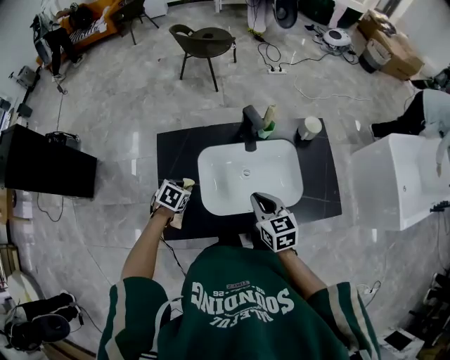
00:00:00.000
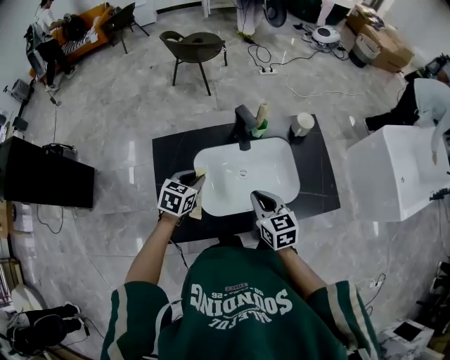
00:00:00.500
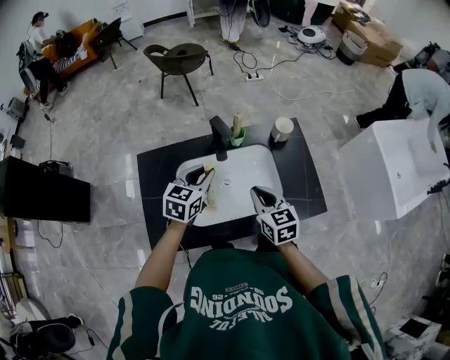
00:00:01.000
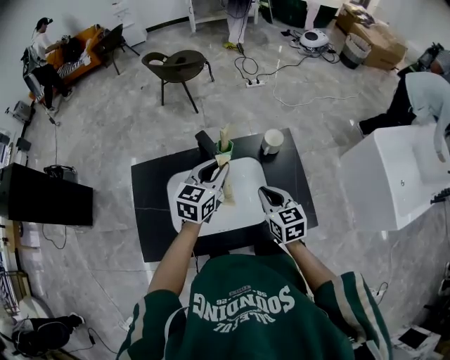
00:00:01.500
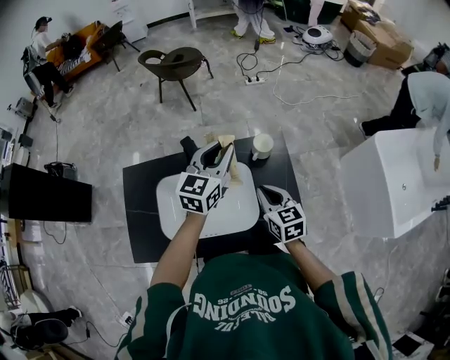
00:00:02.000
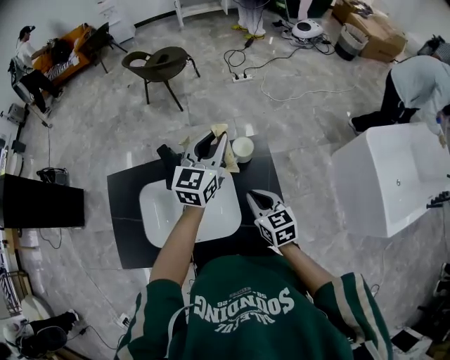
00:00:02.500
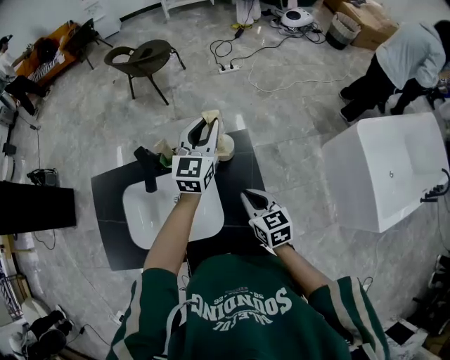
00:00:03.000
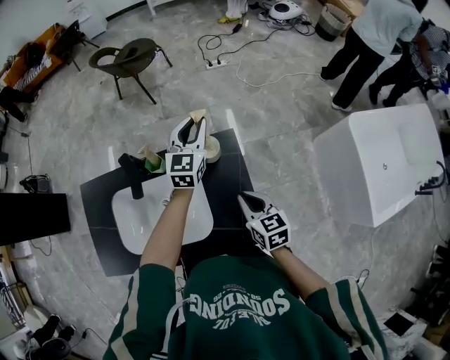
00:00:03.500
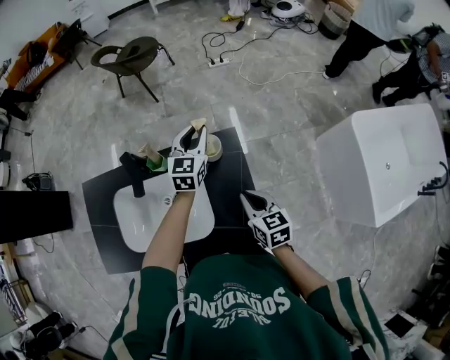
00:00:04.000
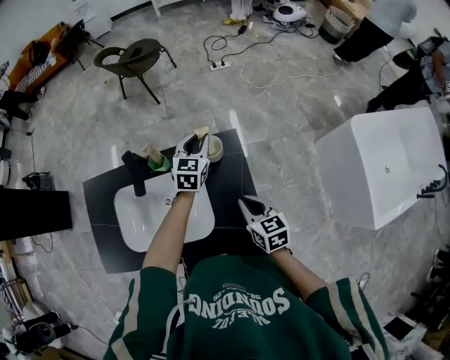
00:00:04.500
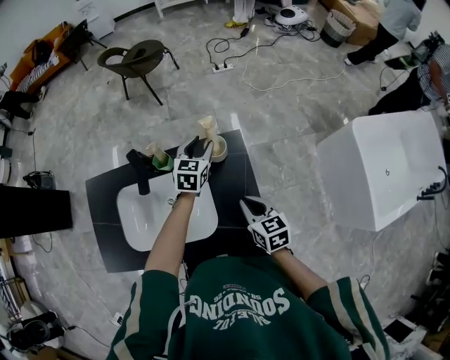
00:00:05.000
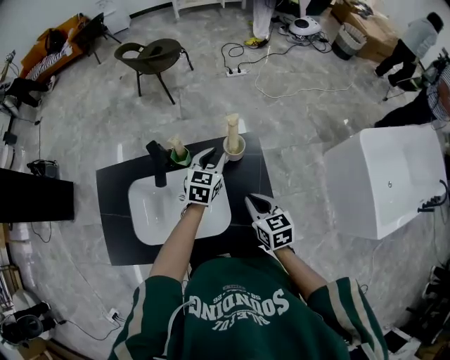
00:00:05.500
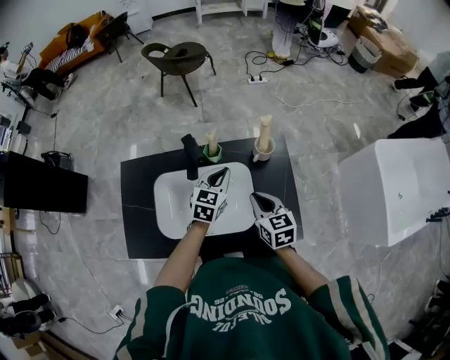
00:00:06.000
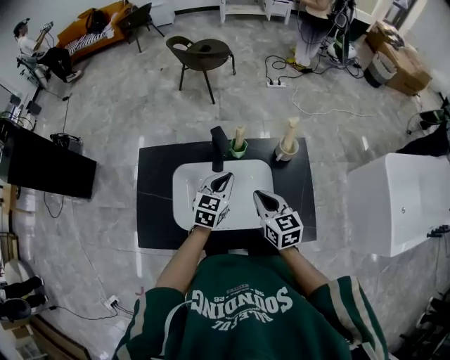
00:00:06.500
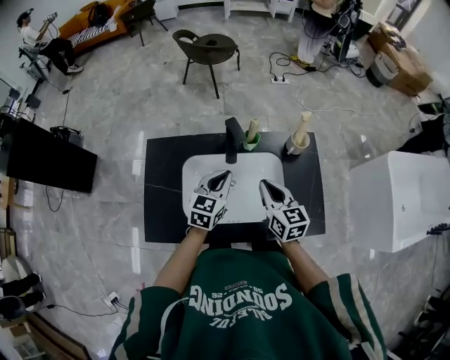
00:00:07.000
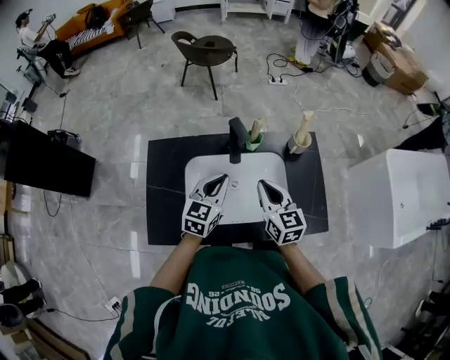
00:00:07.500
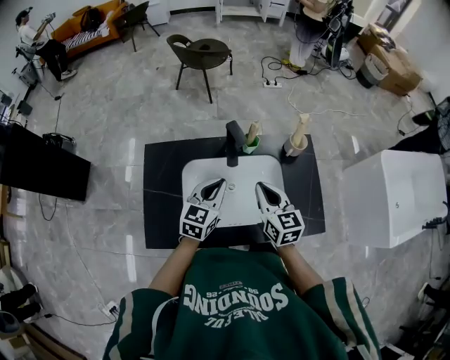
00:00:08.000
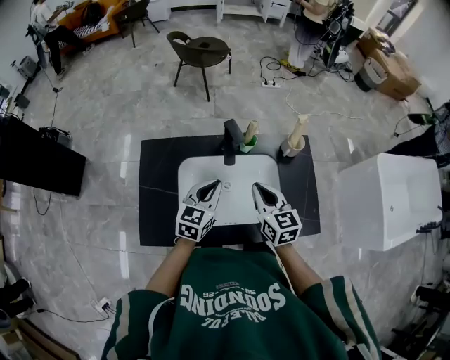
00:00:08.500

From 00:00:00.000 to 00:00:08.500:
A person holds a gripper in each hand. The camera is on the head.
From 00:00:00.000 to 00:00:02.000: The right gripper is displaced to the right and forward by about 25 cm. The left gripper shifts roughly 50 cm to the right, upward and forward, and tilts its fingers roughly 60 degrees upward.
From 00:00:02.000 to 00:00:04.000: The left gripper shifts approximately 20 cm to the right, forward and downward; the right gripper heads to the right, covering roughly 15 cm.
From 00:00:04.000 to 00:00:06.500: The right gripper is displaced to the left by roughly 25 cm. Meanwhile the left gripper heads to the left and backward, covering some 30 cm.
From 00:00:06.500 to 00:00:08.500: The left gripper shifts about 10 cm to the left and backward, while the right gripper is displaced to the left by approximately 5 cm.

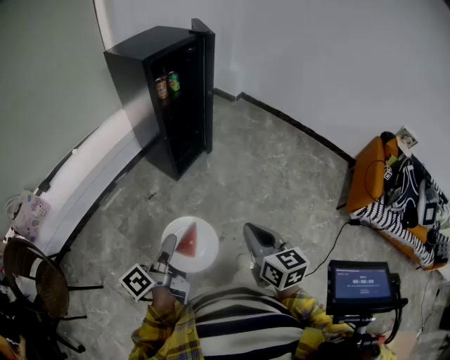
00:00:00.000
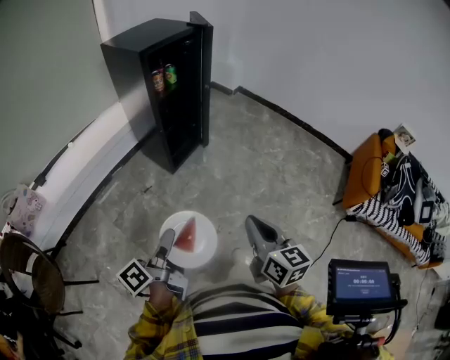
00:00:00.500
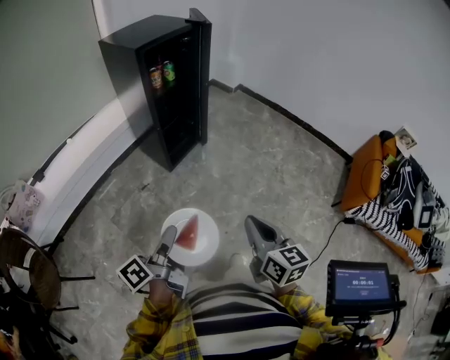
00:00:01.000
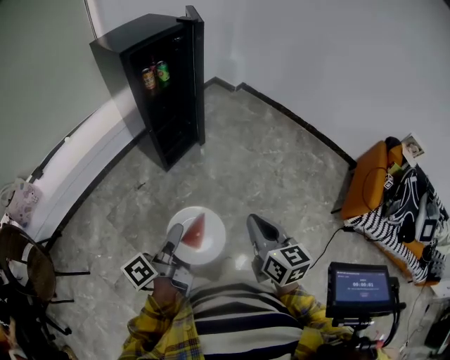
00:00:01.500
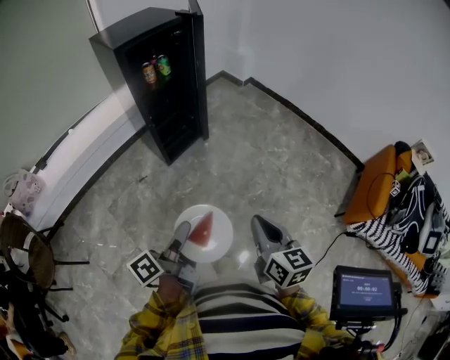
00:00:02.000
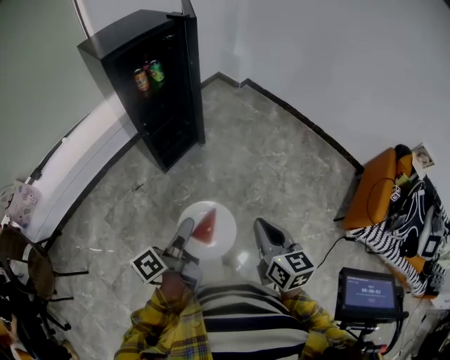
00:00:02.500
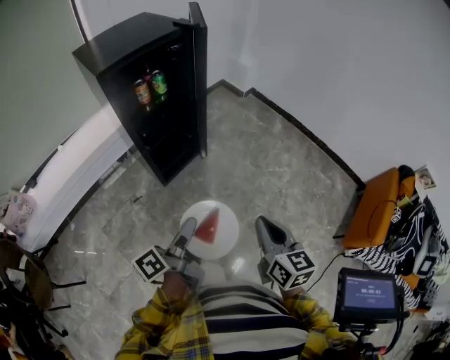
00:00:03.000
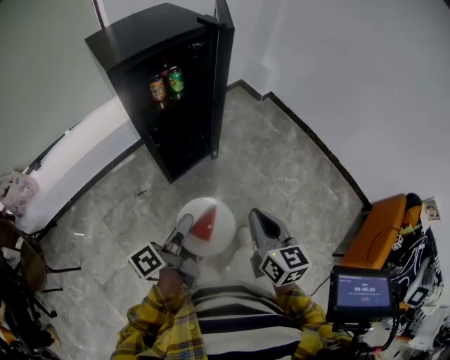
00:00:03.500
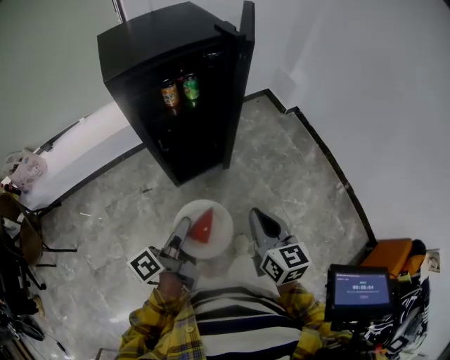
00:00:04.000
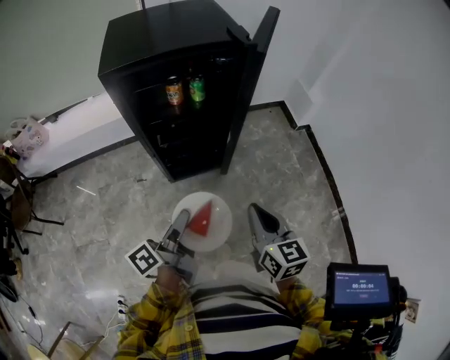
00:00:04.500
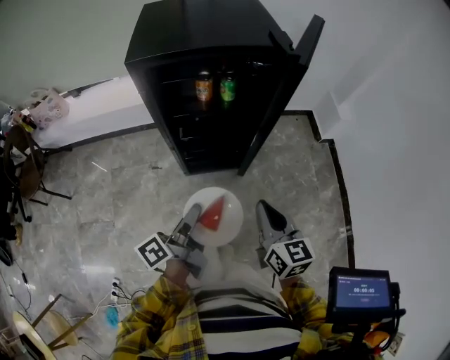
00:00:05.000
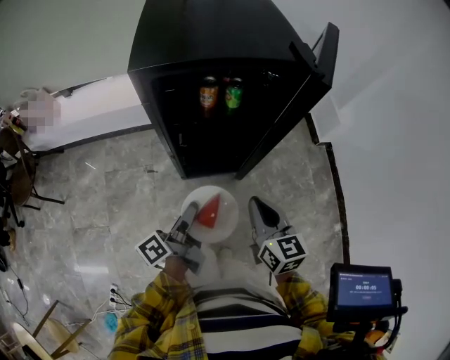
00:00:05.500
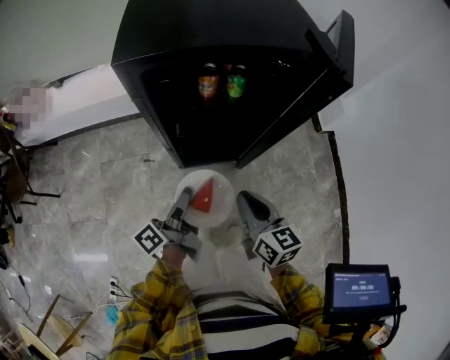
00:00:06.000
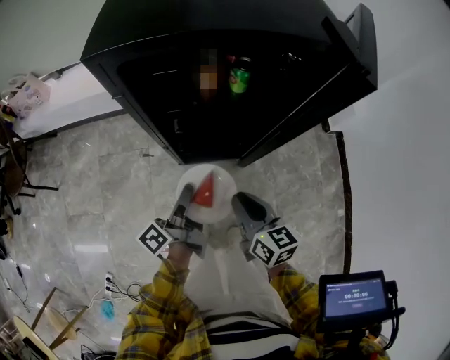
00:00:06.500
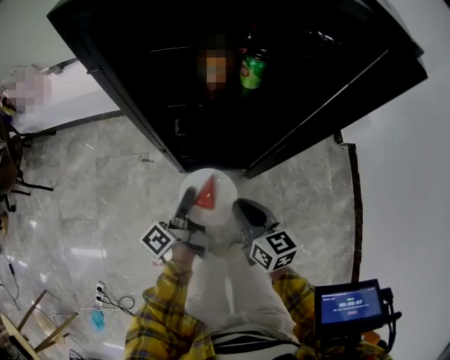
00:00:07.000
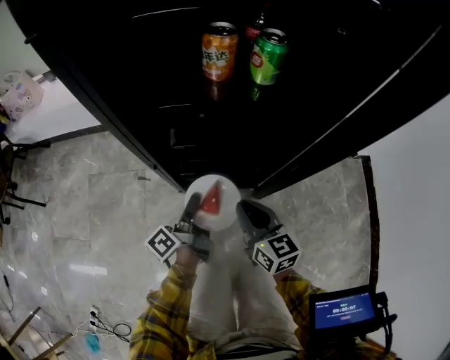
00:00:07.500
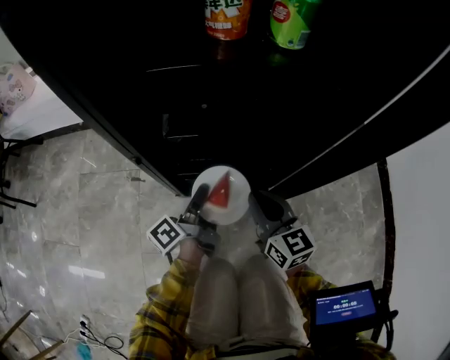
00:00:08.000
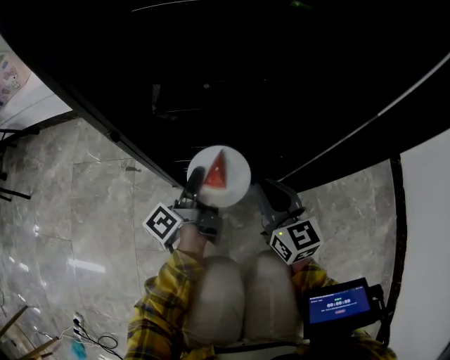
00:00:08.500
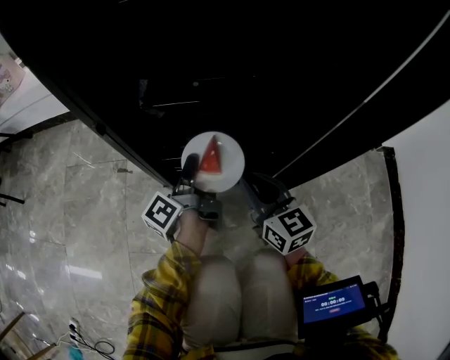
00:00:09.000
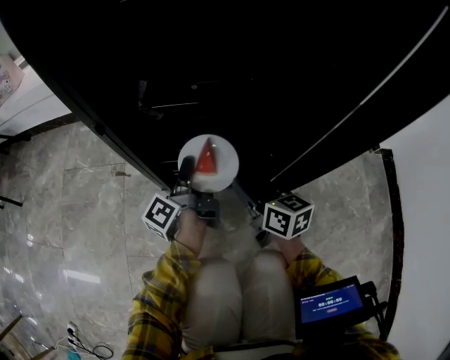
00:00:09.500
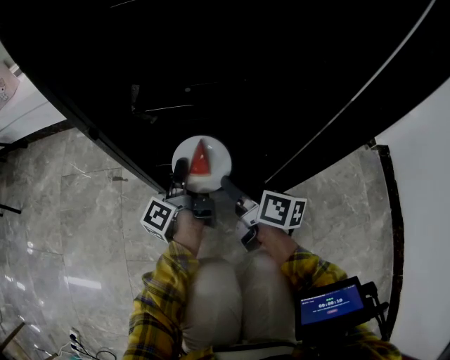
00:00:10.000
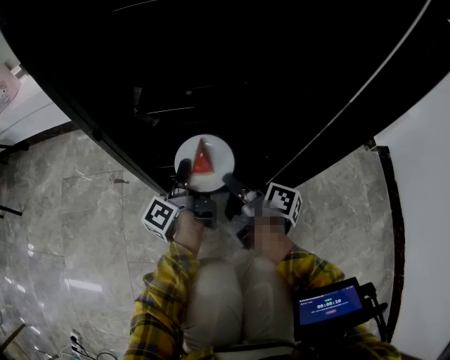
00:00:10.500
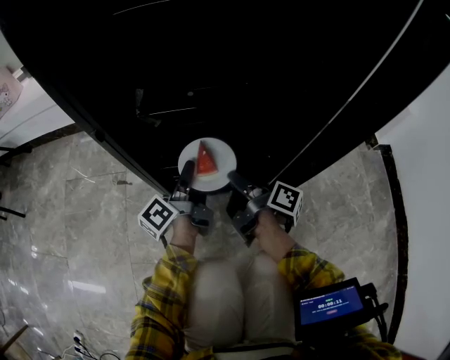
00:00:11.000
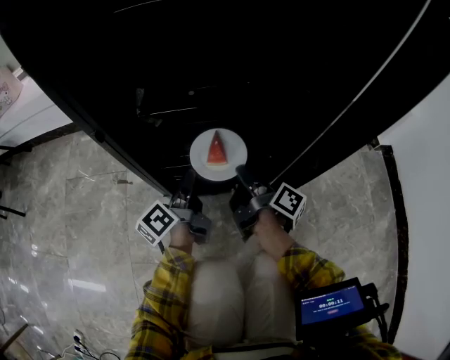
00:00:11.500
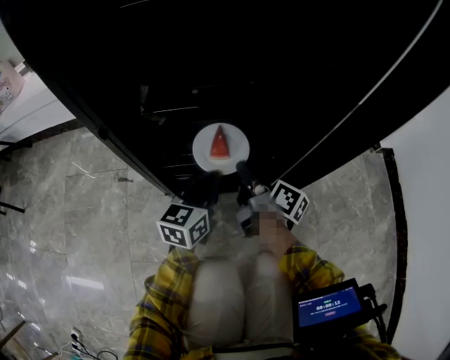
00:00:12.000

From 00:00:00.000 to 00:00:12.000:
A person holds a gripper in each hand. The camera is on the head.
From 00:00:00.000 to 00:00:02.000: The left gripper travels to the right by some 20 cm. The right gripper goes some 20 cm to the right and forward.
From 00:00:02.000 to 00:00:04.000: The grippers both shift forward by some 35 cm.
From 00:00:04.000 to 00:00:06.000: The left gripper shifts some 20 cm forward and downward, and swivels about 20 degrees. The right gripper travels forward by about 20 cm, and changes its angle by approximately 20 degrees.
From 00:00:06.000 to 00:00:08.000: The left gripper shifts roughly 40 cm downward, while the right gripper travels downward and forward by approximately 40 cm.
From 00:00:08.000 to 00:00:10.000: The left gripper goes some 10 cm downward and forward. The right gripper shifts about 10 cm downward, rotates around the line of its fingers by about 40 degrees, clockwise from behind, and opens.
From 00:00:10.000 to 00:00:12.000: The right gripper ends up approximately 5 cm from where it was; the left gripper moves to the right and backward, approximately 10 cm, and rotates around the line of its fingers by roughly 70 degrees, clockwise from behind.

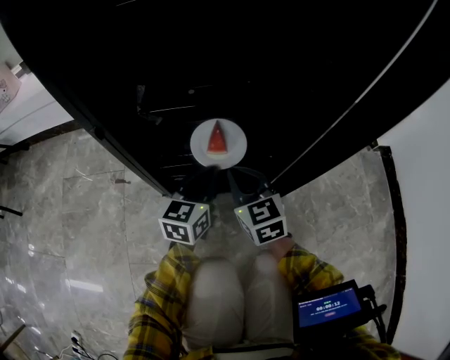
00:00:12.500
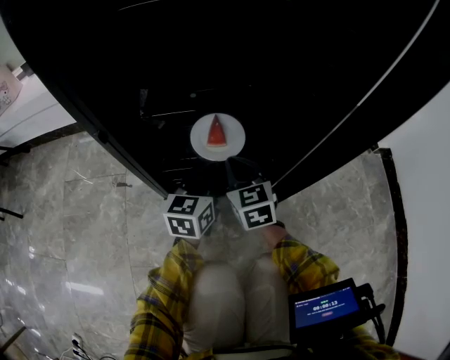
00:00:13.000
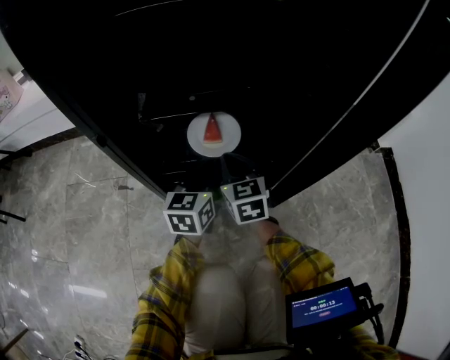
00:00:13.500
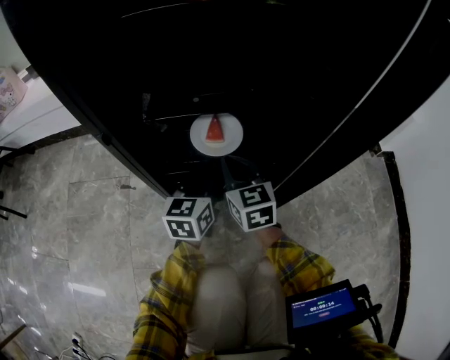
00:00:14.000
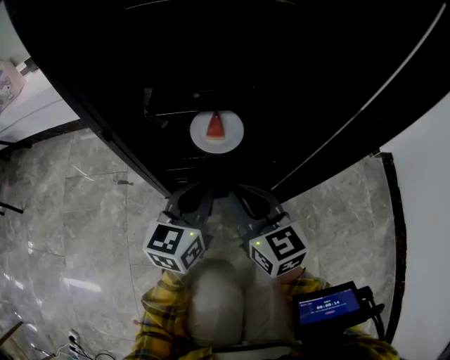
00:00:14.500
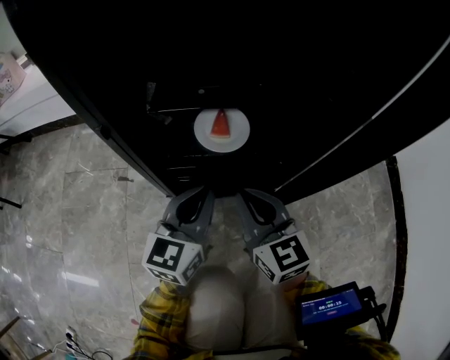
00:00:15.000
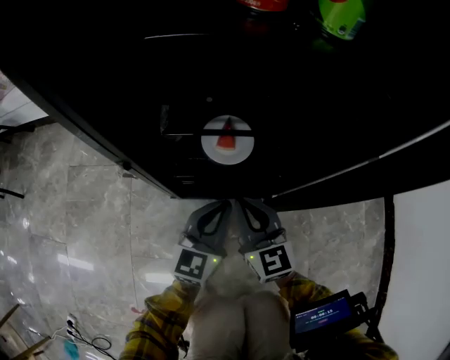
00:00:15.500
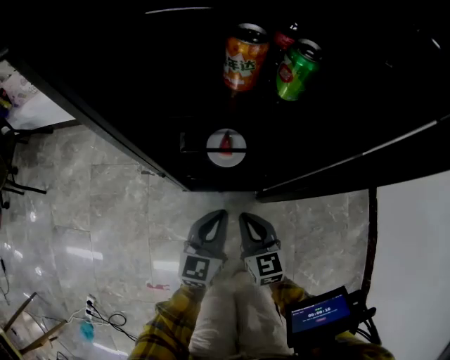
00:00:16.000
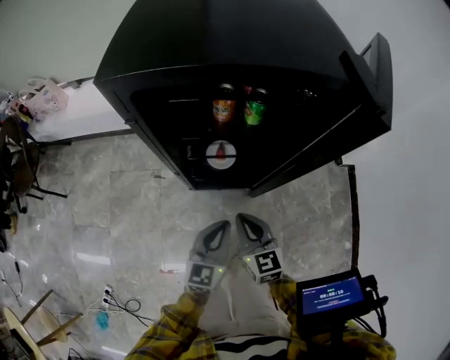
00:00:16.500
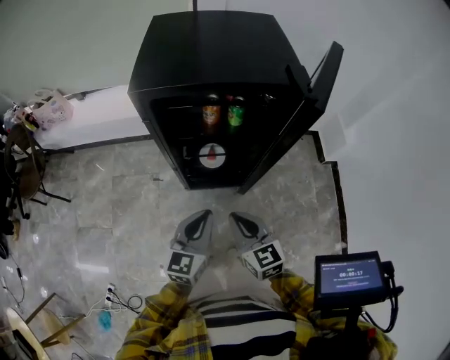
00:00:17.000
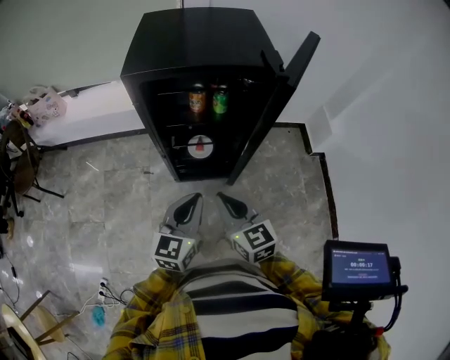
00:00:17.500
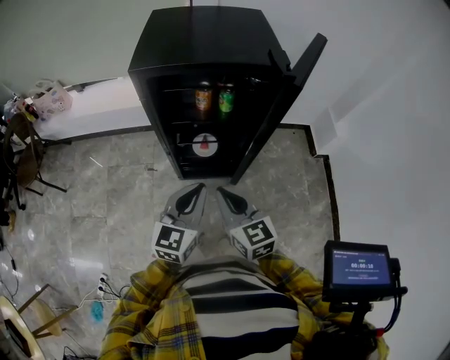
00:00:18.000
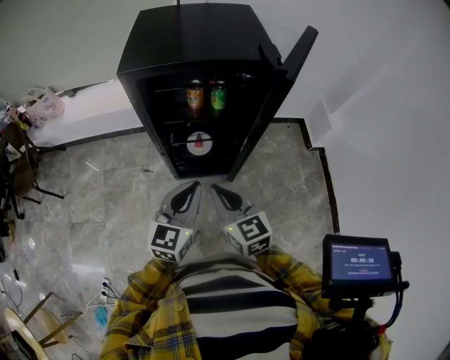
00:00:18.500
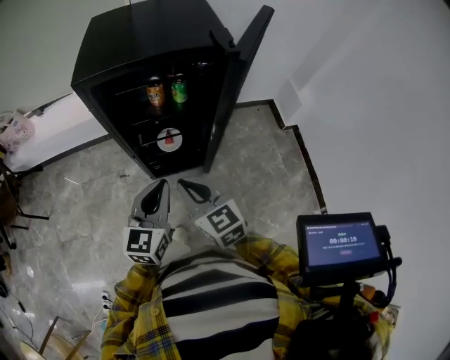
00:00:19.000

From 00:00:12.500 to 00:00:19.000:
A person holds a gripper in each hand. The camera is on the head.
From 00:00:12.500 to 00:00:14.500: The right gripper shifts approximately 10 cm upward and backward; the left gripper shifts roughly 5 cm upward.
From 00:00:14.500 to 00:00:17.000: The two grippers go roughly 50 cm upward and backward.
From 00:00:17.000 to 00:00:19.000: The right gripper shifts by some 5 cm, while the left gripper goes some 5 cm upward.
